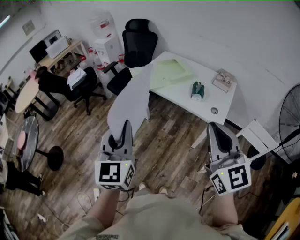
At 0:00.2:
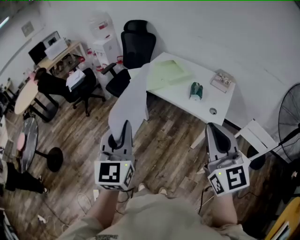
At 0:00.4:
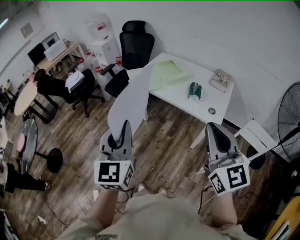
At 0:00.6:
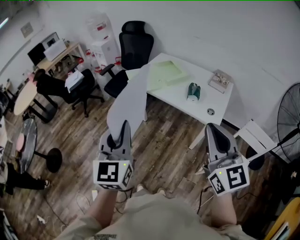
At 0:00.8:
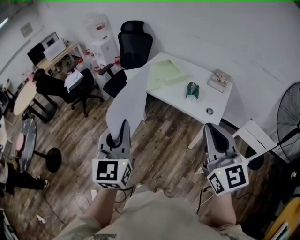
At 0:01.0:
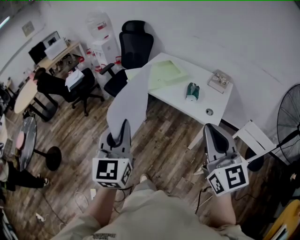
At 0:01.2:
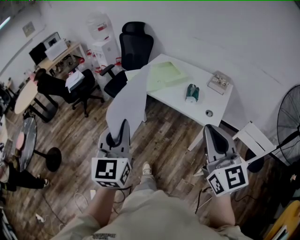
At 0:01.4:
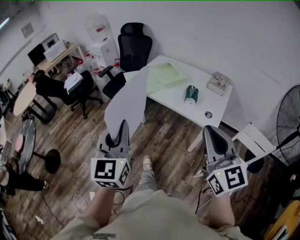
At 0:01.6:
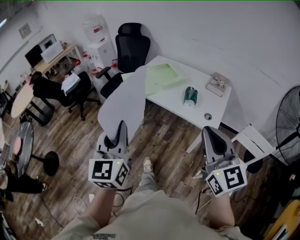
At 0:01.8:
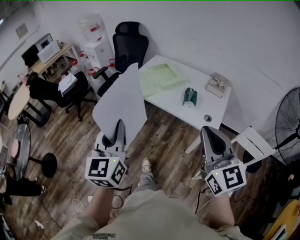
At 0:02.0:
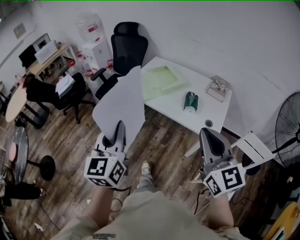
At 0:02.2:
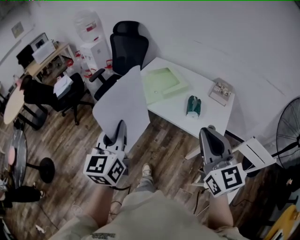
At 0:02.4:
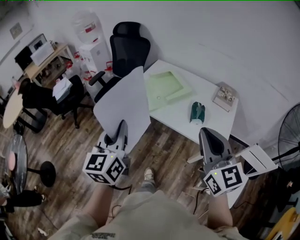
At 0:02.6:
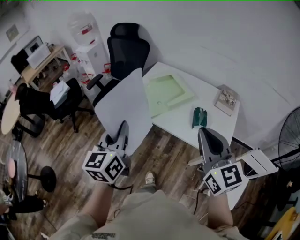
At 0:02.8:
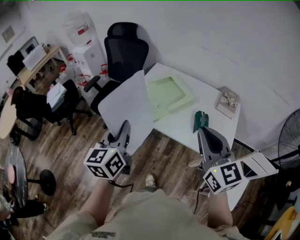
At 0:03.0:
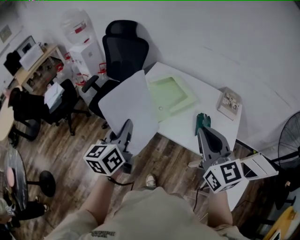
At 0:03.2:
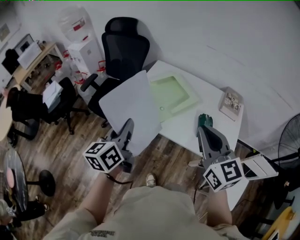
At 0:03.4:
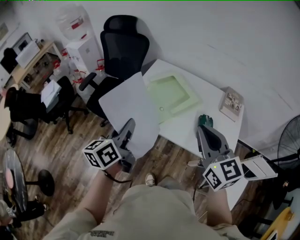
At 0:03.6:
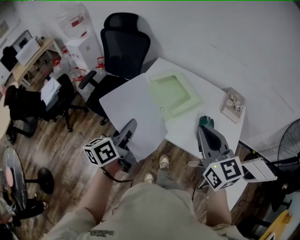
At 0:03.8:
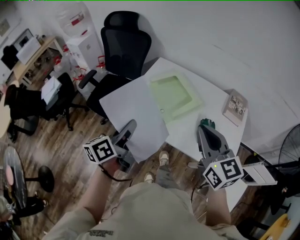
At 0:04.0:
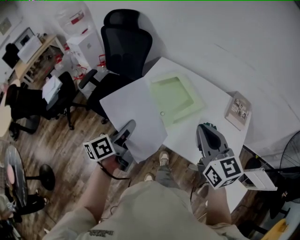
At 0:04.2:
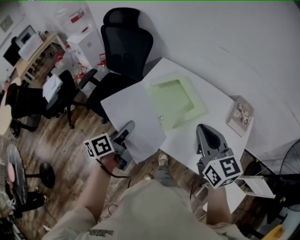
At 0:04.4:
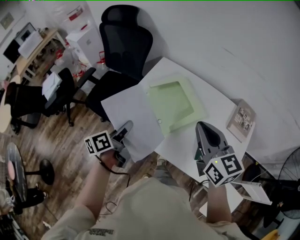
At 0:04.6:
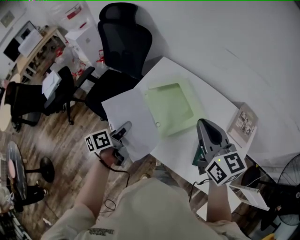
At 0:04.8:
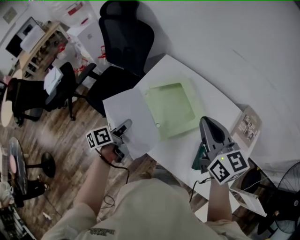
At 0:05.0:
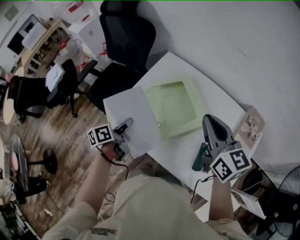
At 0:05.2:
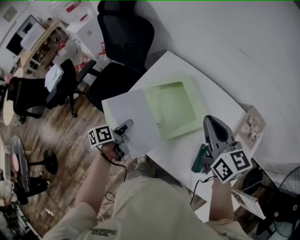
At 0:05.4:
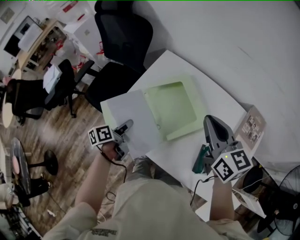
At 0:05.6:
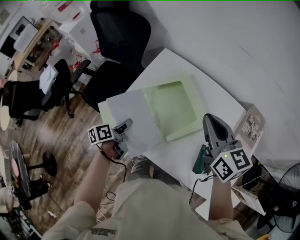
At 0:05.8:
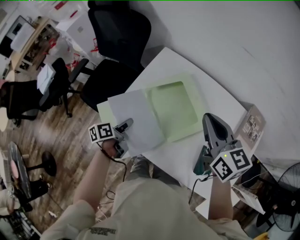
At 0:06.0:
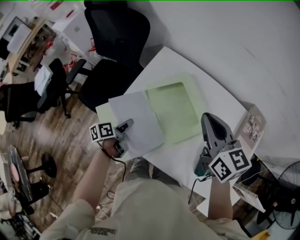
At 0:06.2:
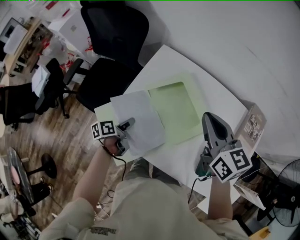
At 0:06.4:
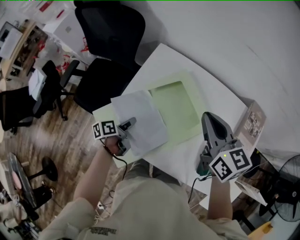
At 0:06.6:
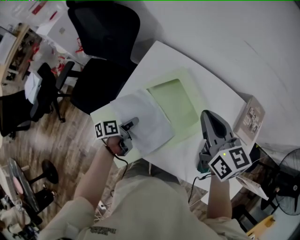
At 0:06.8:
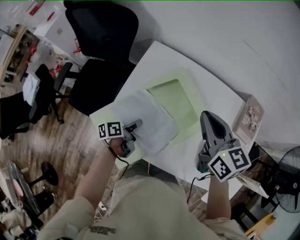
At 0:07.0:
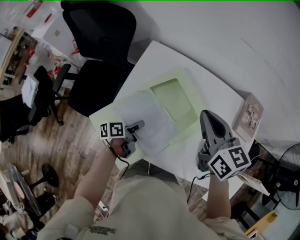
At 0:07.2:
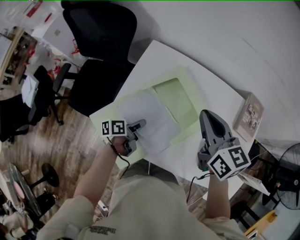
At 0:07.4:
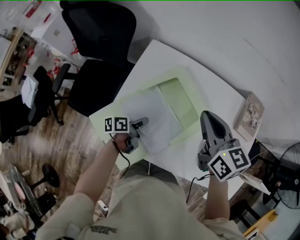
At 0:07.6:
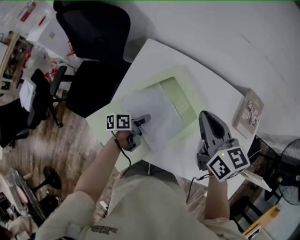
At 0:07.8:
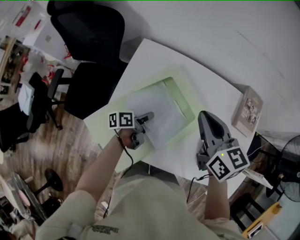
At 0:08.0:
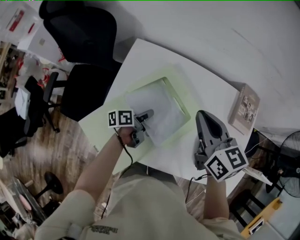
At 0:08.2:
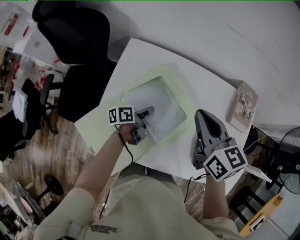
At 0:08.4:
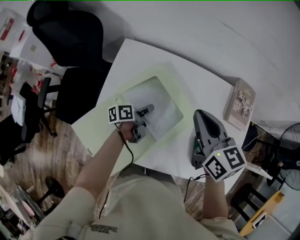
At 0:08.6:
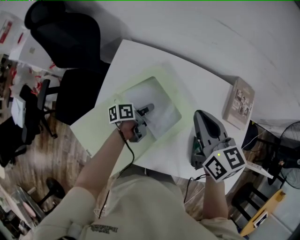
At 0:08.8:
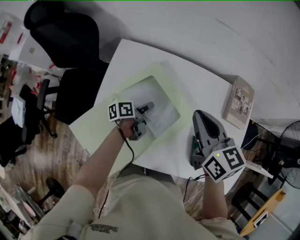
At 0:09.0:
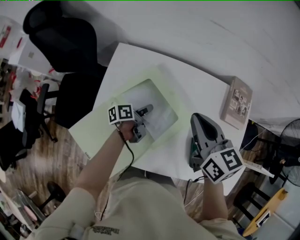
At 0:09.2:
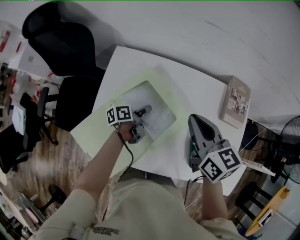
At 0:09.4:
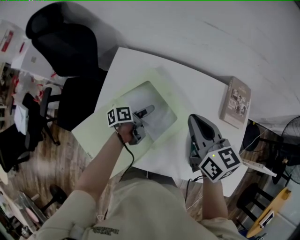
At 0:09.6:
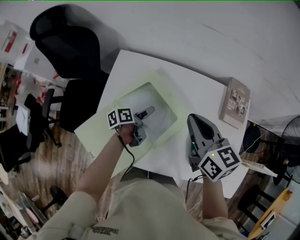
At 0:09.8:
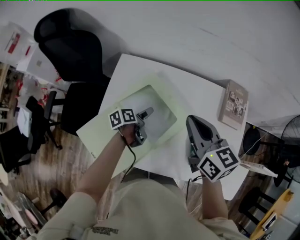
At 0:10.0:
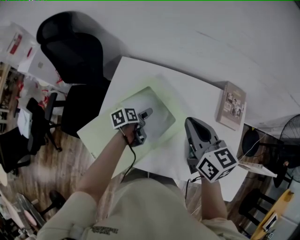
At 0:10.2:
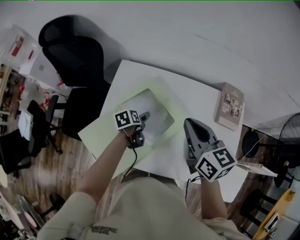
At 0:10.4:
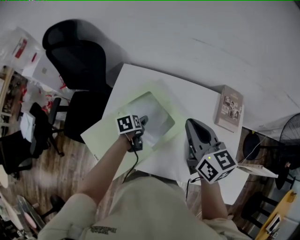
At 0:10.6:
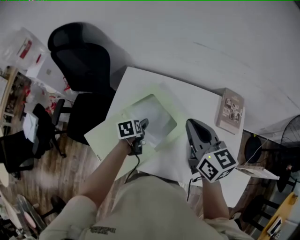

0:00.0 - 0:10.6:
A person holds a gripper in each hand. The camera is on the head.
0:00.0 - 0:01.6: The left gripper changes place by roughly 5 cm, while the right gripper changes place by roughly 5 cm.
0:01.6 - 0:03.0: Both grippers travel together forward, some 35 cm. The left gripper turns by about 30 degrees.
0:03.0 - 0:04.6: The right gripper goes about 30 cm forward, while the left gripper travels forward and downward by roughly 30 cm, and rotates some 40 degrees.
0:04.6 - 0:06.0: The left gripper heads downward and forward, covering roughly 15 cm; the right gripper shifts some 15 cm forward and downward.
0:06.0 - 0:07.6: The left gripper goes approximately 10 cm to the right and forward, and turns by some 20 degrees.
0:07.6 - 0:09.0: The right gripper goes some 5 cm to the right. The left gripper heads forward and to the right, covering roughly 15 cm.
0:09.0 - 0:10.6: The left gripper moves to the left, upward and backward, about 10 cm, tips its fingers downward by some 30 degrees, and opens; the right gripper travels upward by approximately 10 cm.

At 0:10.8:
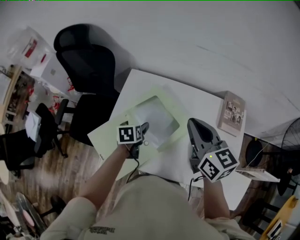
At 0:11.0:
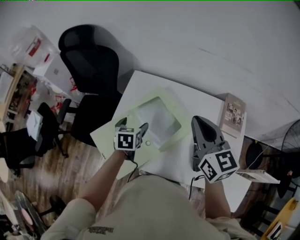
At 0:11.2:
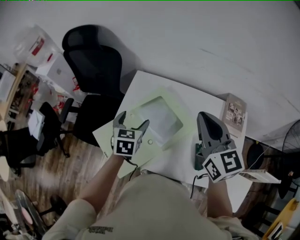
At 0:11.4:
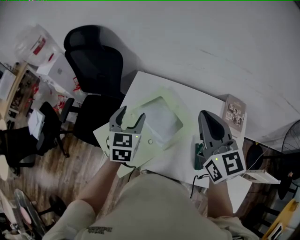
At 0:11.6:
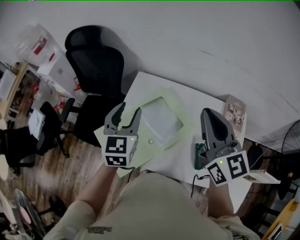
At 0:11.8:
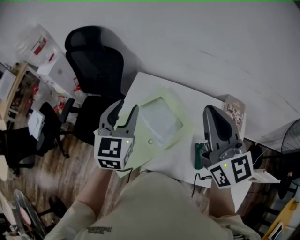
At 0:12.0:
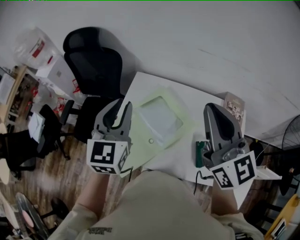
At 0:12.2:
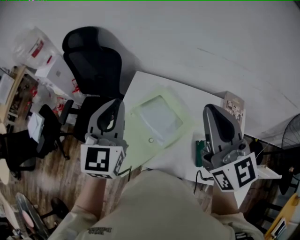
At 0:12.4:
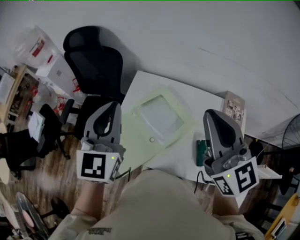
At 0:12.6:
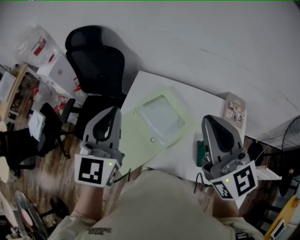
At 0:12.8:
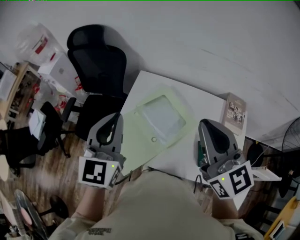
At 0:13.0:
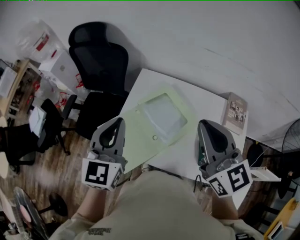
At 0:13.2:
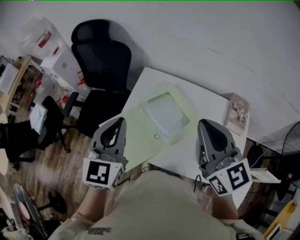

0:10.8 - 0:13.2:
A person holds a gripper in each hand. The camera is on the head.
0:10.8 - 0:12.0: The left gripper is displaced upward by about 35 cm, tips its fingers upward by about 50 degrees, and closes. The right gripper shifts about 15 cm upward, and changes its angle by approximately 20 degrees.
0:12.0 - 0:13.2: The left gripper goes roughly 5 cm backward, while the right gripper changes place by approximately 5 cm.

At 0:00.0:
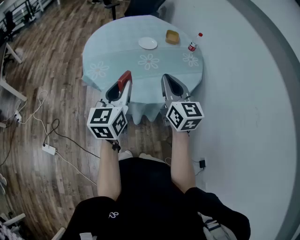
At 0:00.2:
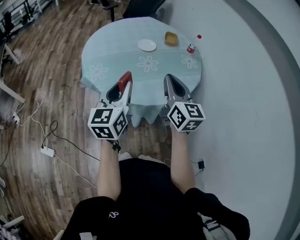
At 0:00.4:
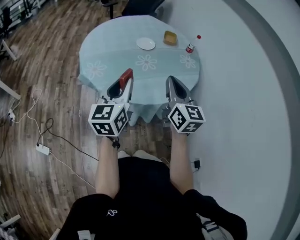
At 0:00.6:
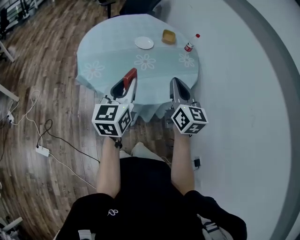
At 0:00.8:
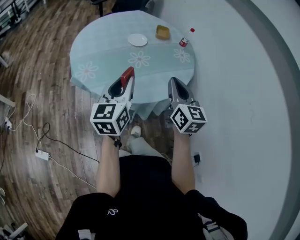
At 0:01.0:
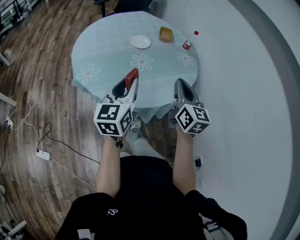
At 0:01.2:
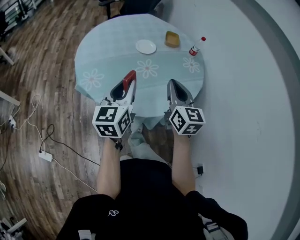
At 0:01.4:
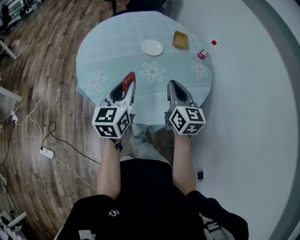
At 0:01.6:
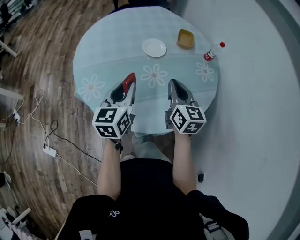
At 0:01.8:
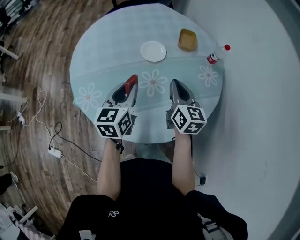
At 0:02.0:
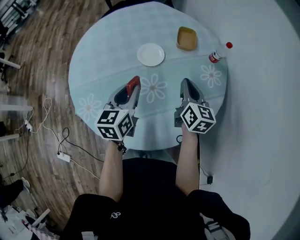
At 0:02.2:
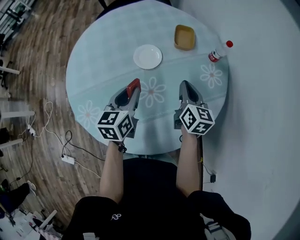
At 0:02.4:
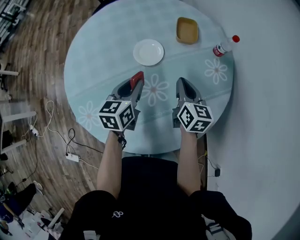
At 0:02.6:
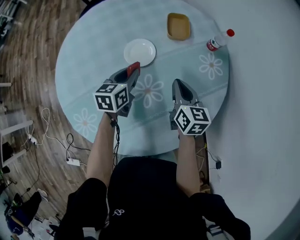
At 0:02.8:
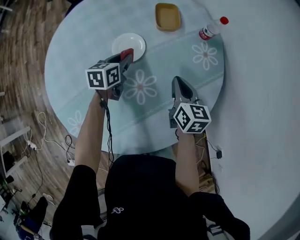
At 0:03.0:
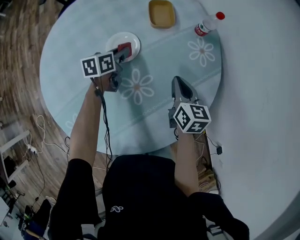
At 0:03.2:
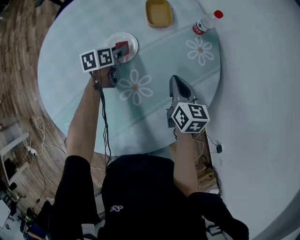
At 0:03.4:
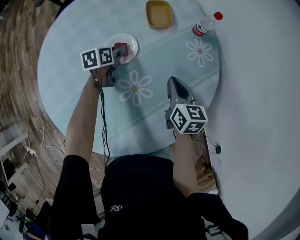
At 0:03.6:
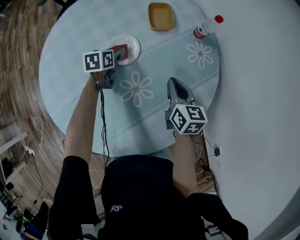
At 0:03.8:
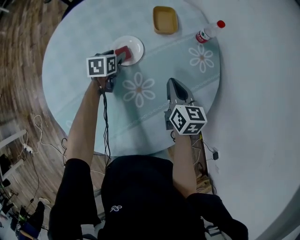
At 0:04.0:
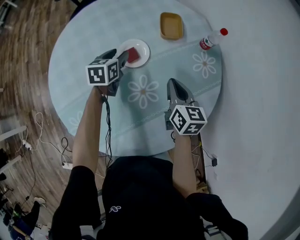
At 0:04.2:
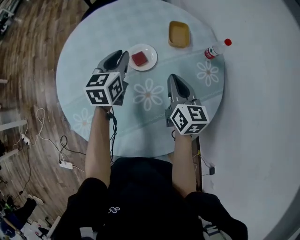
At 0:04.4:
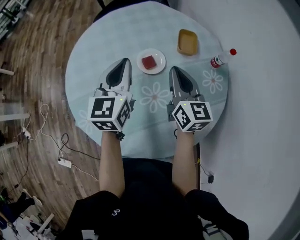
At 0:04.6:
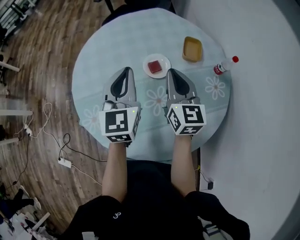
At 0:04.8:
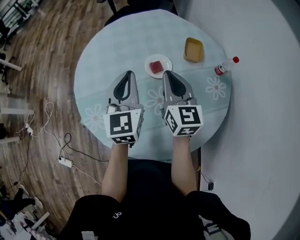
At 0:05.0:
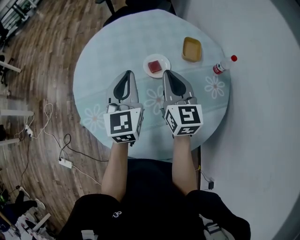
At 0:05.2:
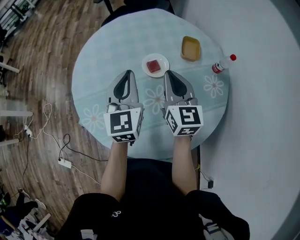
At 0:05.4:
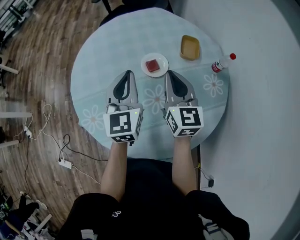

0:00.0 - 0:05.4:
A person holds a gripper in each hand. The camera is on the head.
0:00.0 - 0:01.4: The grippers both shift forward by approximately 15 cm.
0:01.4 - 0:02.8: The left gripper heads forward and downward, covering approximately 50 cm, and swivels roughly 40 degrees. Meanwhile the right gripper shifts about 30 cm forward and downward, and changes its angle by about 30 degrees.
0:02.8 - 0:04.0: The left gripper moves to the left, some 5 cm, and opens.
0:04.0 - 0:05.4: The right gripper moves upward and to the left, about 15 cm, and turns by about 30 degrees, while the left gripper moves upward and backward, approximately 25 cm, swivels approximately 40 degrees, and closes up.

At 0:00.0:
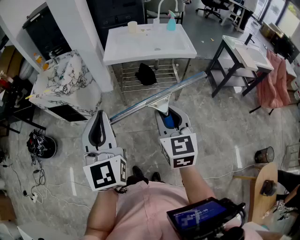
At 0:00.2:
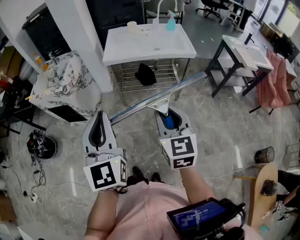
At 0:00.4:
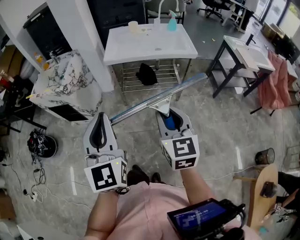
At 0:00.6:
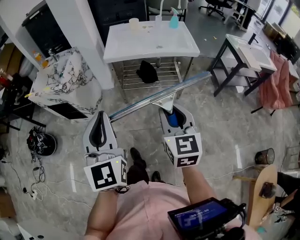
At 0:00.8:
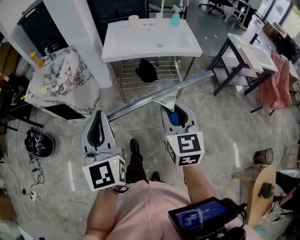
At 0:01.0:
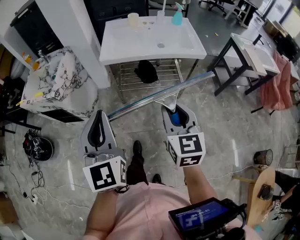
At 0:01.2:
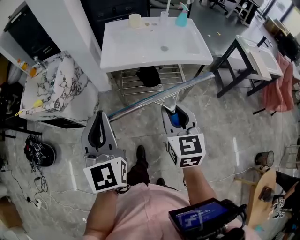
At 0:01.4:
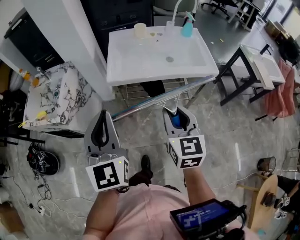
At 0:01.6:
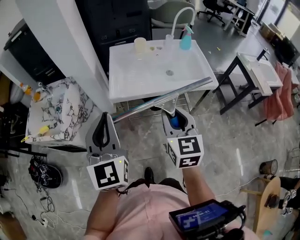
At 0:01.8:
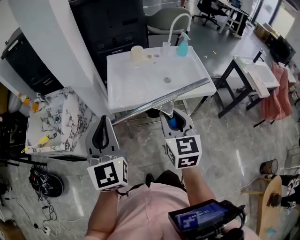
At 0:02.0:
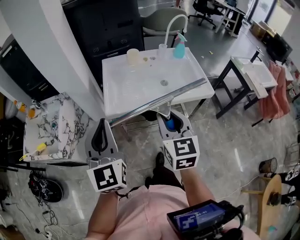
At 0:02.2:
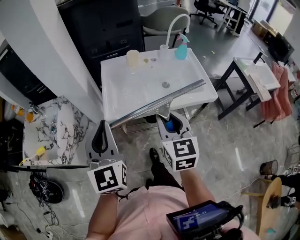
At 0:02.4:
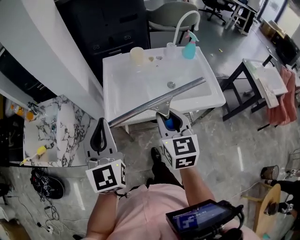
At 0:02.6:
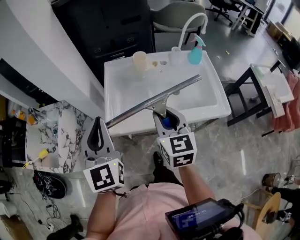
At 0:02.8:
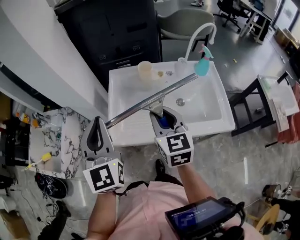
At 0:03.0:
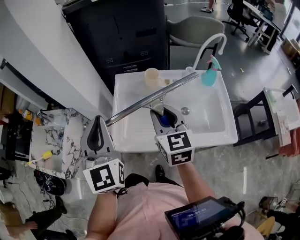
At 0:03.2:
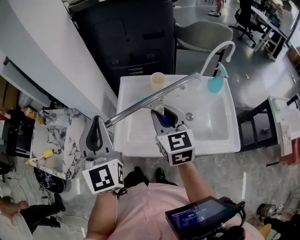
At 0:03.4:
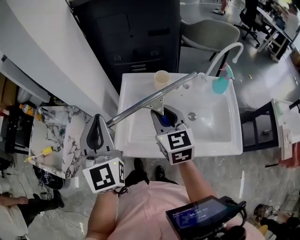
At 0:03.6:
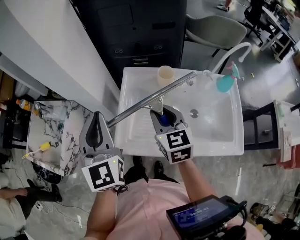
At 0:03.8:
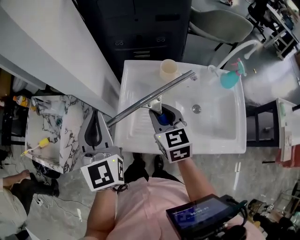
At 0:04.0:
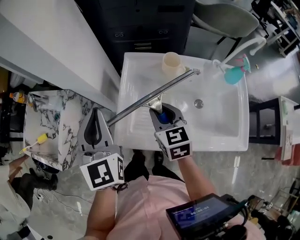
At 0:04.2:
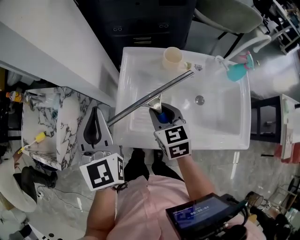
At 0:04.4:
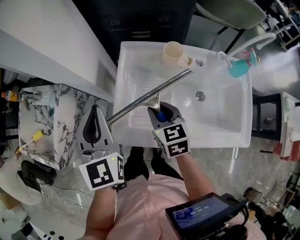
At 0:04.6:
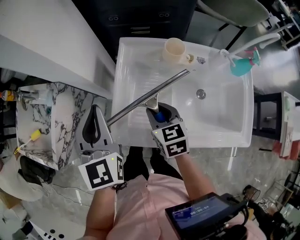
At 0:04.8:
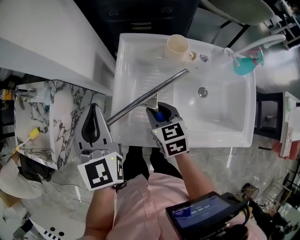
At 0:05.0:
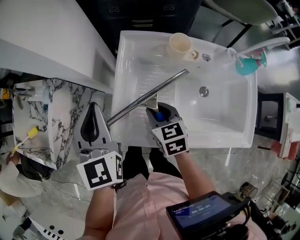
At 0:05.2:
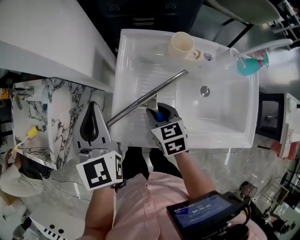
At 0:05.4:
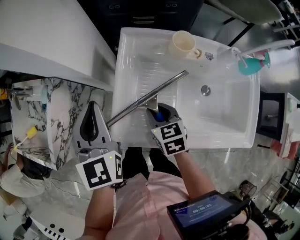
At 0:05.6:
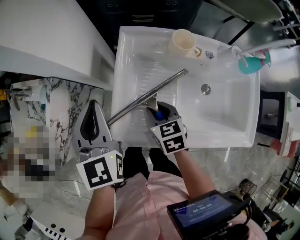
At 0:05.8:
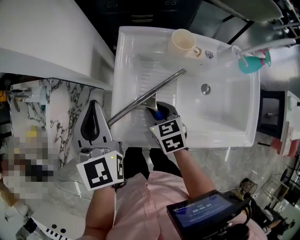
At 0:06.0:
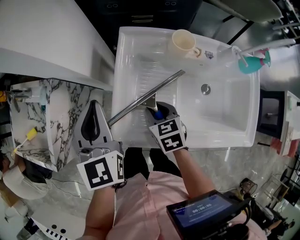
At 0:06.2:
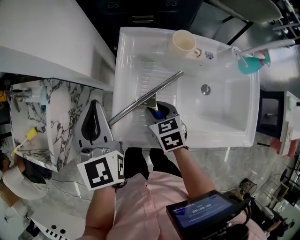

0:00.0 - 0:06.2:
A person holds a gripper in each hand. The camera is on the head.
0:00.0 - 0:01.6: The two grippers go about 30 cm forward.
0:01.6 - 0:03.2: The two grippers go approximately 30 cm forward.
0:03.2 - 0:04.6: The right gripper goes approximately 20 cm downward, and rotates some 30 degrees. Meanwhile the left gripper heads downward and forward, covering roughly 15 cm.
0:04.6 - 0:06.2: The right gripper is displaced downward by approximately 5 cm.
